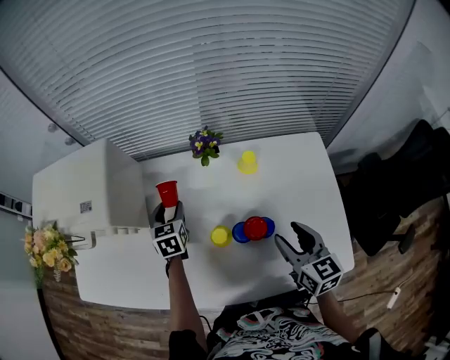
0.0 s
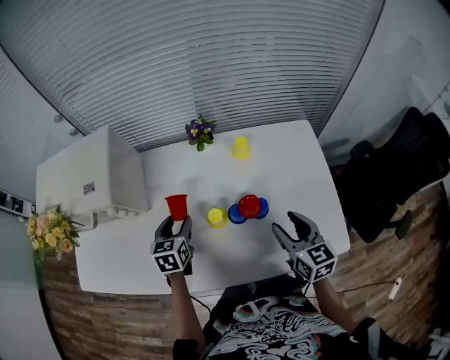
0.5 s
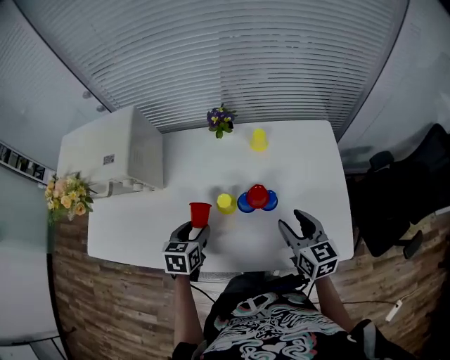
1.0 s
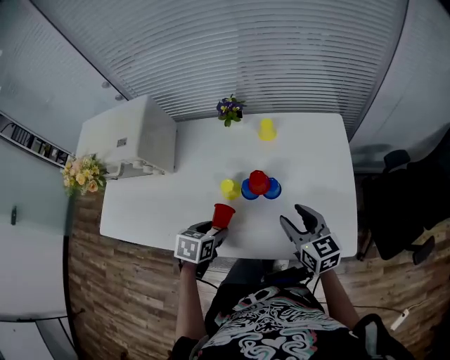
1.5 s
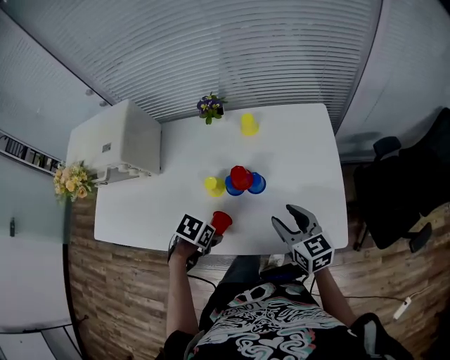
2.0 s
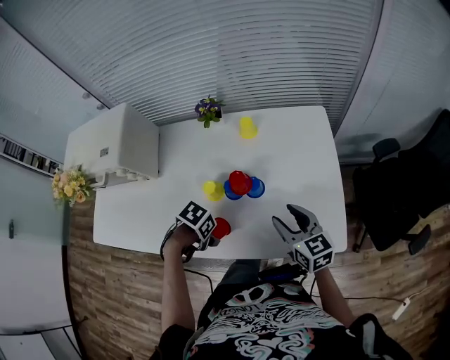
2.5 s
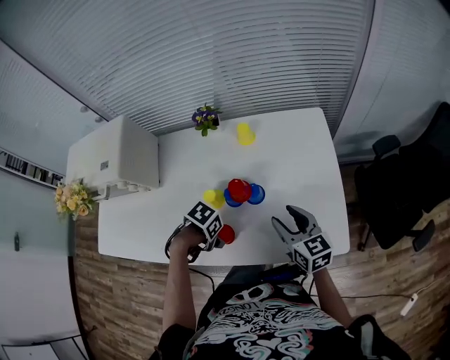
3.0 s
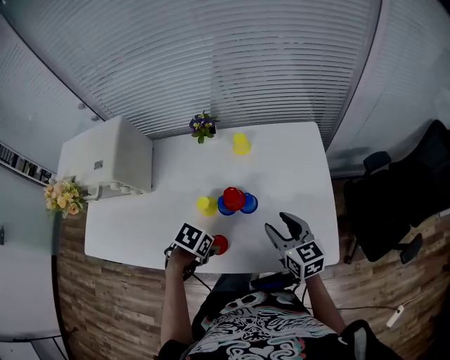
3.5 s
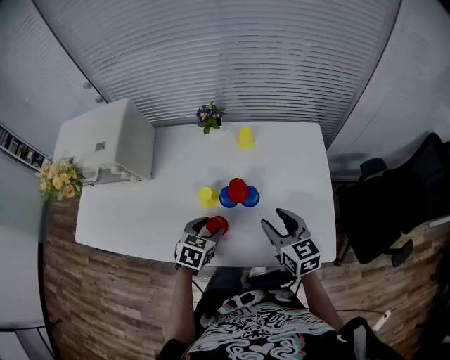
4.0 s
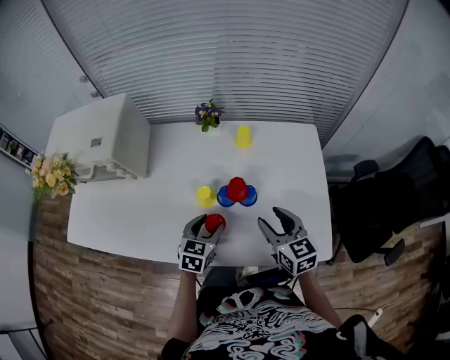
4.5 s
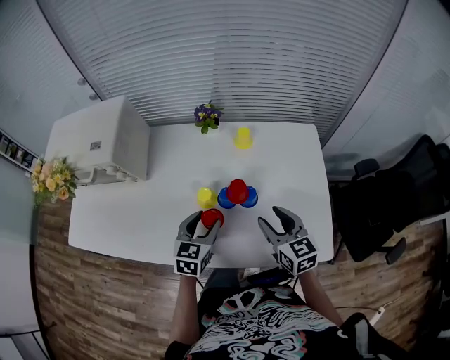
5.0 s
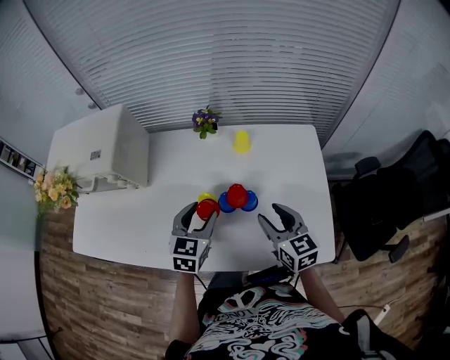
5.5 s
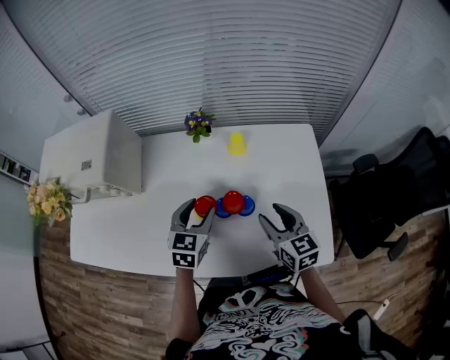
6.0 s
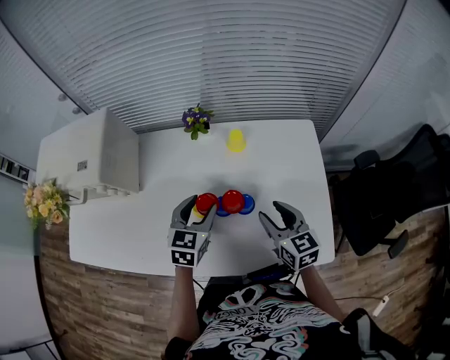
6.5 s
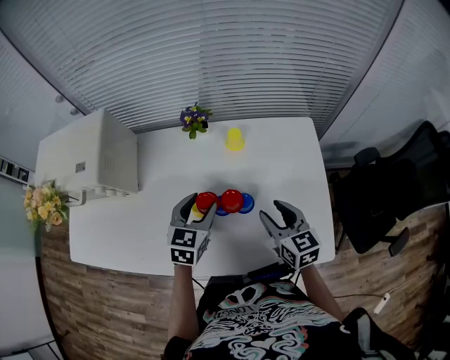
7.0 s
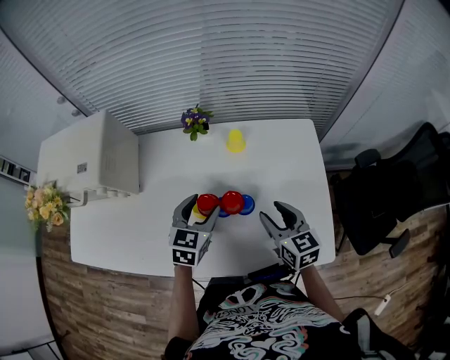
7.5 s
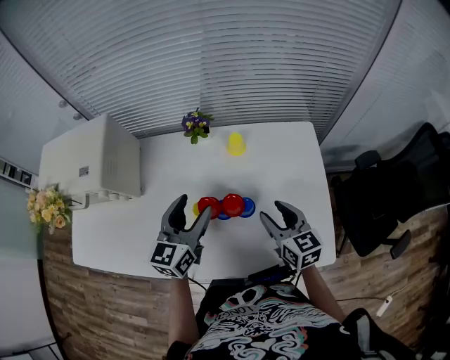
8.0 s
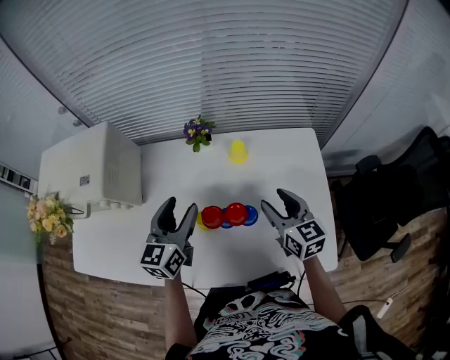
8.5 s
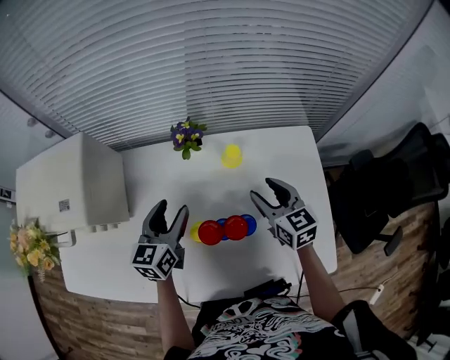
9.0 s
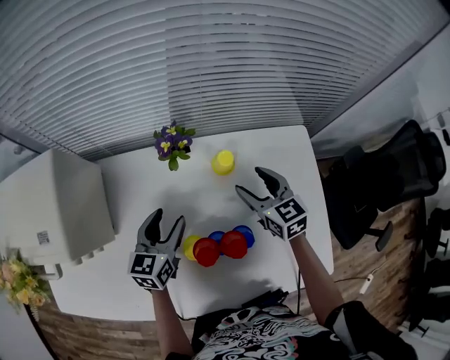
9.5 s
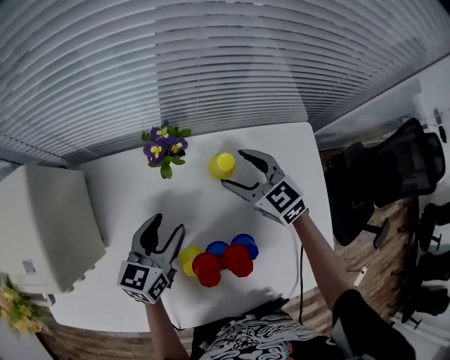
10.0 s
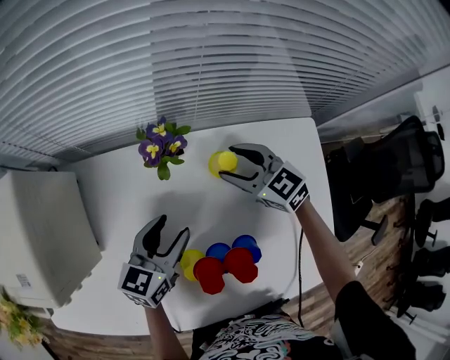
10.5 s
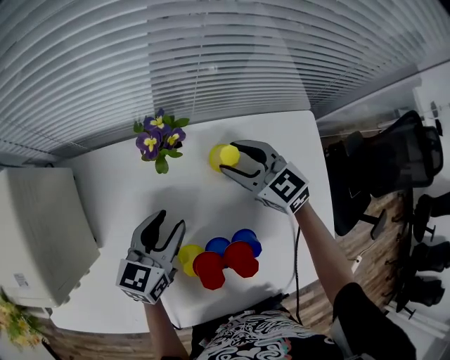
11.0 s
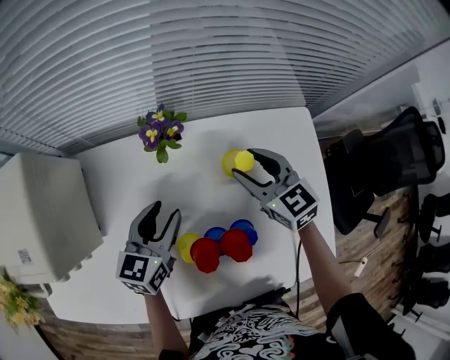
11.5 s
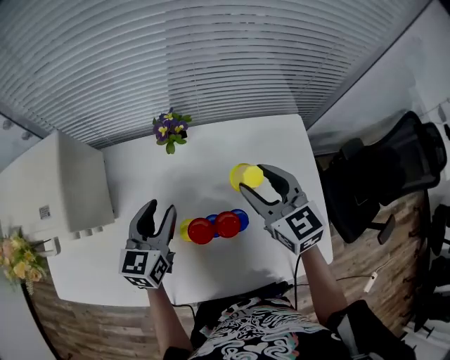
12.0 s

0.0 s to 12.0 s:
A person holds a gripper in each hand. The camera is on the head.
0.0 to 2.0 s: The right gripper changes place by some 10 cm. Meanwhile the left gripper changes place by about 35 cm, and points its fingers some 40 degrees further downward.
2.0 to 4.0 s: The left gripper shifts by roughly 5 cm, and turns by some 40 degrees.
4.0 to 6.0 s: The left gripper travels forward and upward by some 10 cm.
6.0 to 8.0 s: The left gripper heads upward, covering about 5 cm, and swivels approximately 20 degrees.
8.0 to 10.0 s: The left gripper goes approximately 15 cm forward and downward; the right gripper shifts some 25 cm forward, rotates some 30 degrees, and opens its fingers.
10.0 to 12.0 s: The right gripper is displaced backward and upward by about 15 cm, while the left gripper is displaced upward by roughly 5 cm.

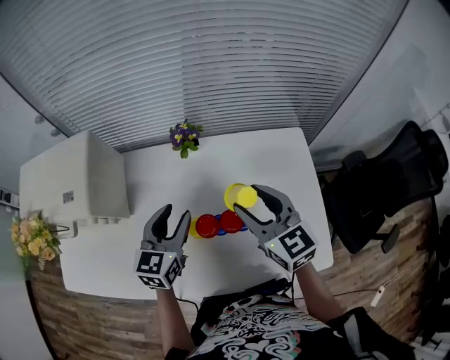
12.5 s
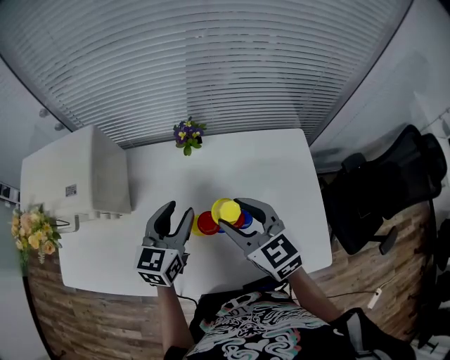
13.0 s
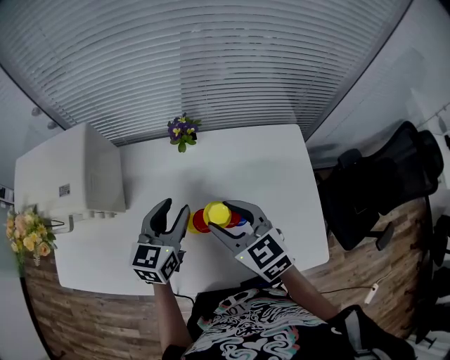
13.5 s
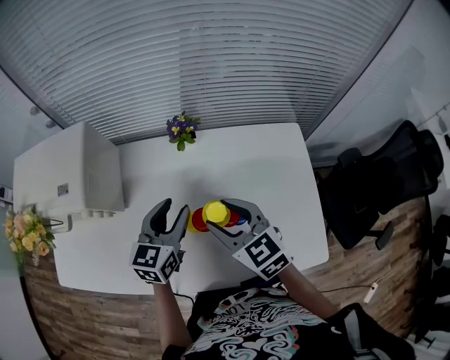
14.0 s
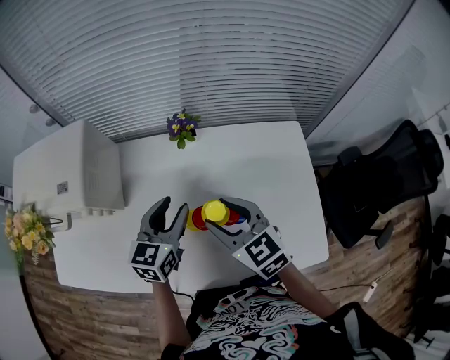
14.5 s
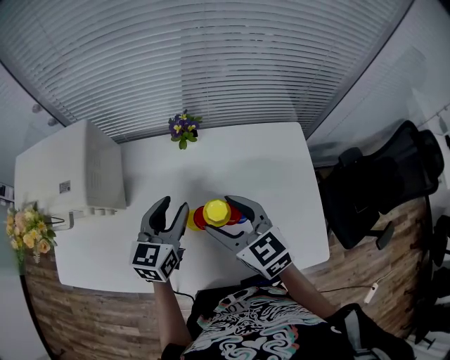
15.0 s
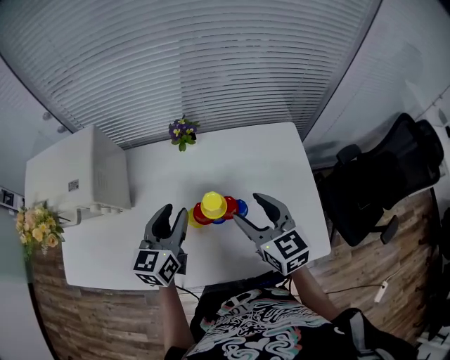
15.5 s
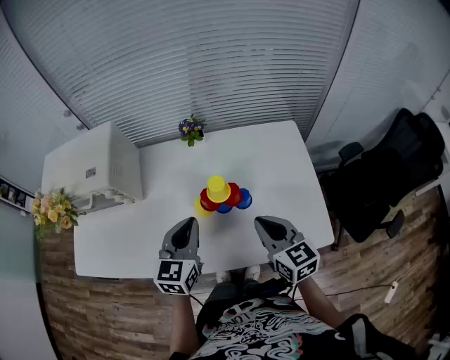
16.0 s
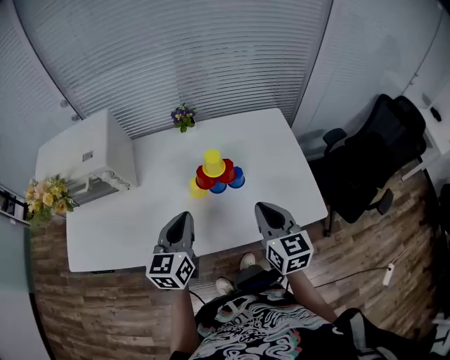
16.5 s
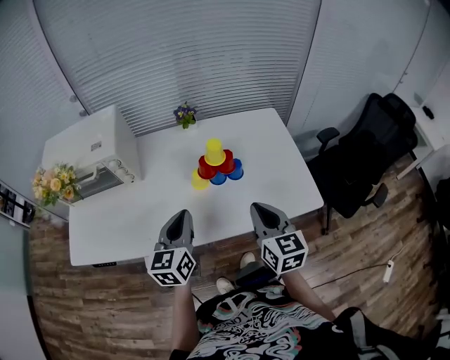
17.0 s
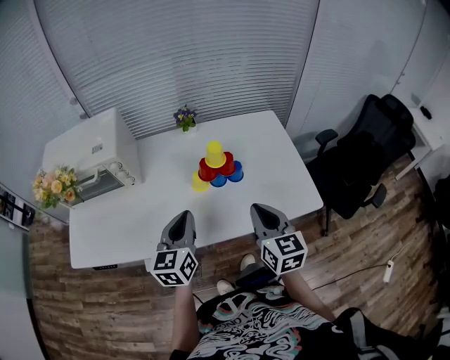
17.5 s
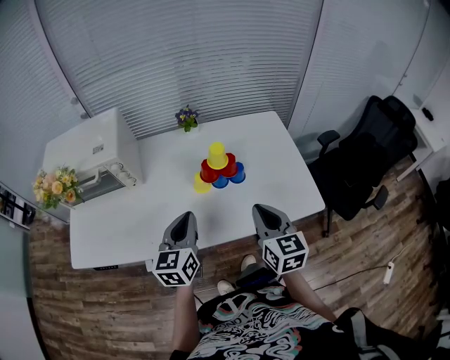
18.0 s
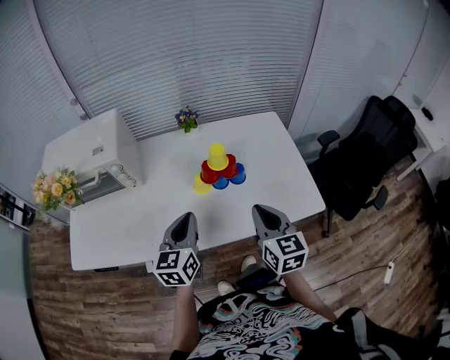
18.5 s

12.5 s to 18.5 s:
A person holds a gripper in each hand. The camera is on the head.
12.5 to 14.5 s: The right gripper is displaced to the left by approximately 10 cm.
14.5 to 16.5 s: The left gripper moves backward, about 15 cm, and closes up. Meanwhile the right gripper goes some 20 cm backward and to the right, changes its angle by approximately 30 degrees, and closes.
16.5 to 18.5 s: The right gripper changes place by some 5 cm.

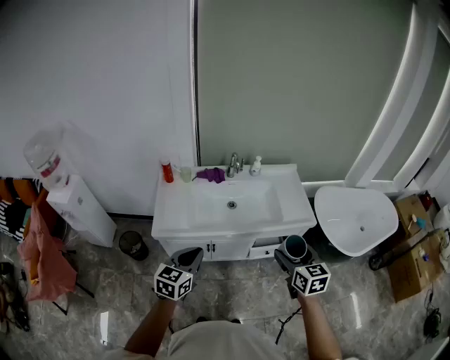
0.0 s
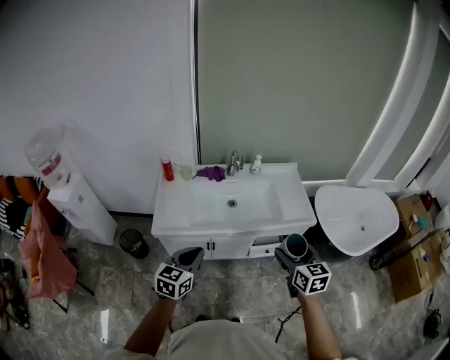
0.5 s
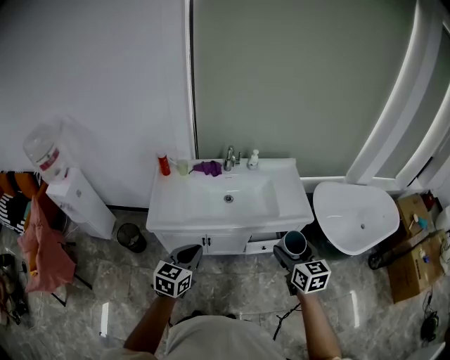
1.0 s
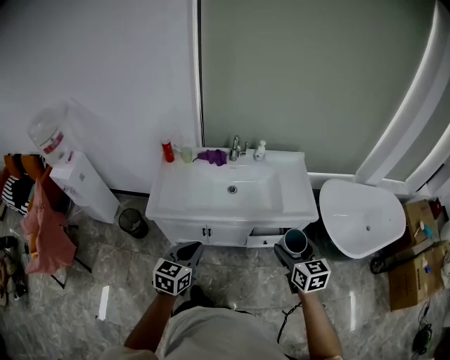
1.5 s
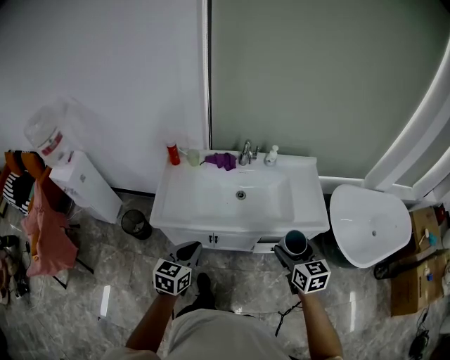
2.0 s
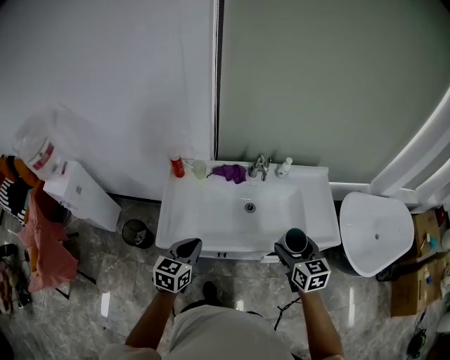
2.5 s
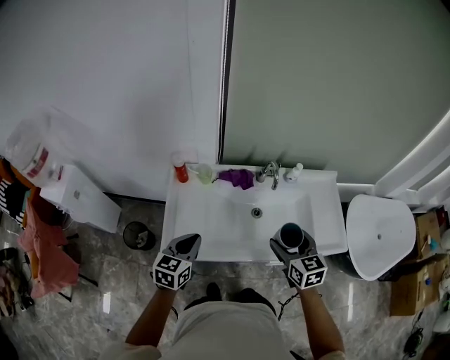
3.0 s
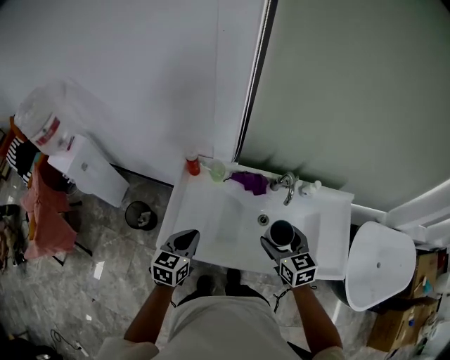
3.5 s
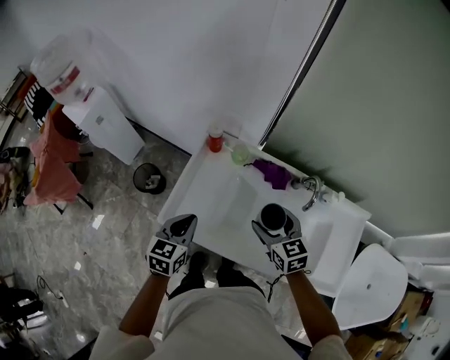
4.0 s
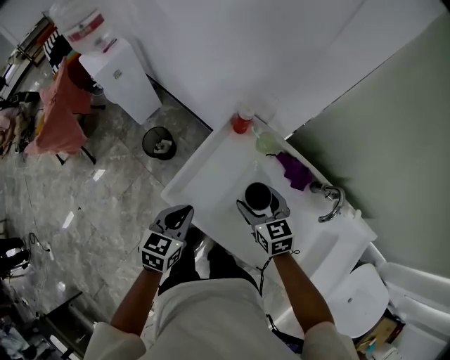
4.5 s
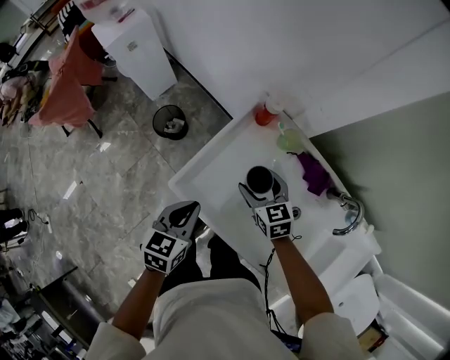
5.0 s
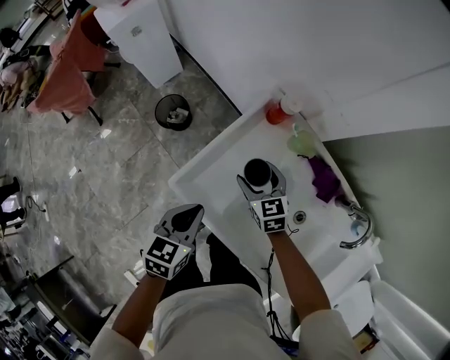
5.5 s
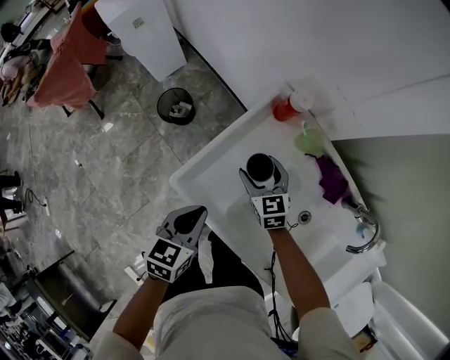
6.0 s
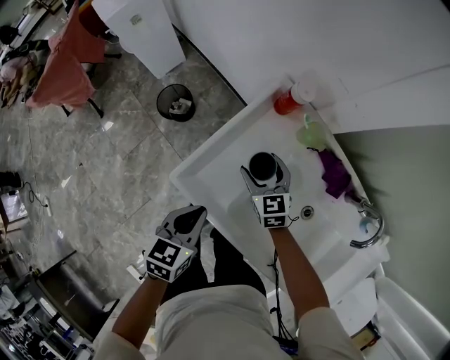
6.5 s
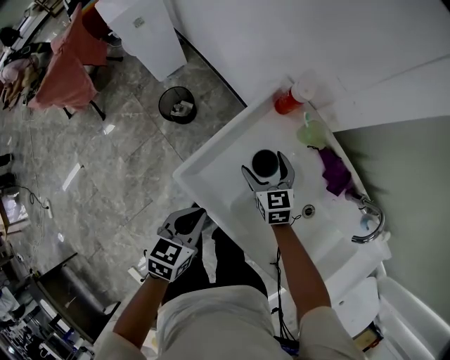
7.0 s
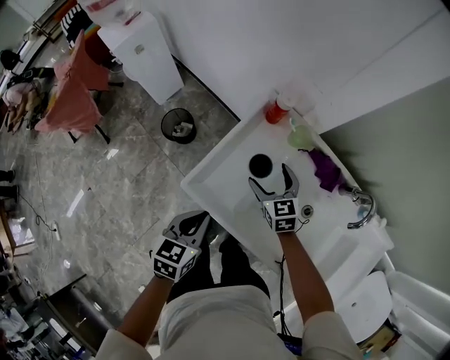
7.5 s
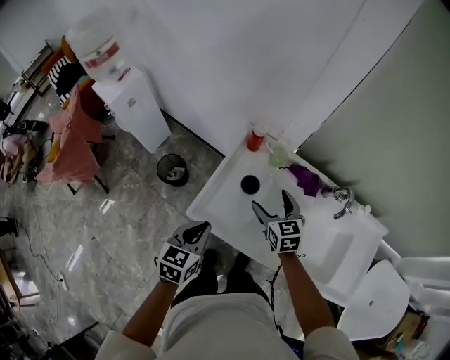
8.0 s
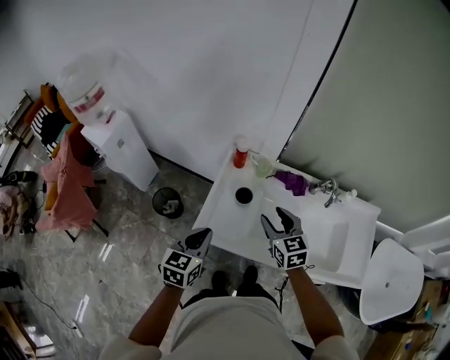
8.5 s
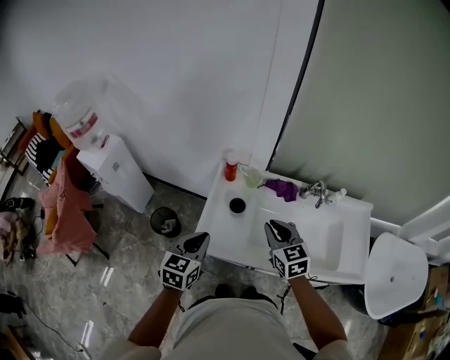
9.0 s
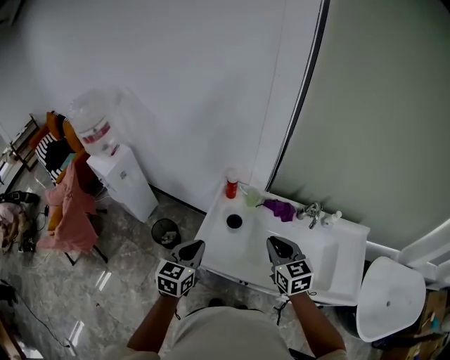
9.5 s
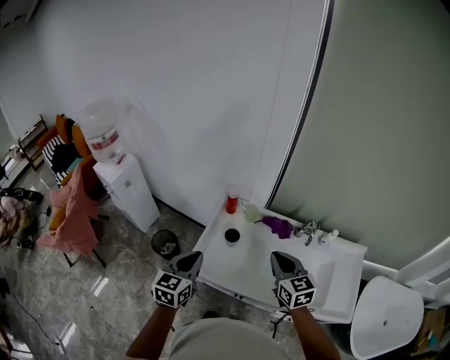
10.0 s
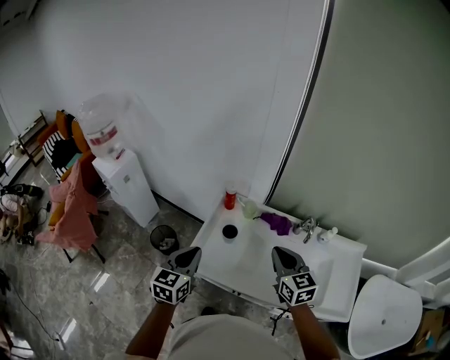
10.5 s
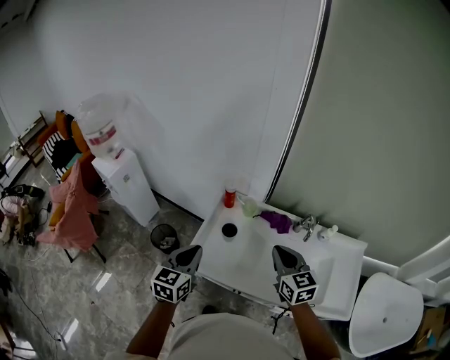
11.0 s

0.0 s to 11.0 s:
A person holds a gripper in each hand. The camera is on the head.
0.0 to 2.0 s: Both grippers move forward and downward, approximately 10 cm.
2.0 to 3.5 s: Both grippers move forward and to the left, roughly 30 cm.
3.5 to 5.5 s: The left gripper travels downward by roughly 10 cm, and swivels about 30 degrees; the right gripper changes place by about 40 cm, and changes its angle by approximately 40 degrees.
5.5 to 7.5 s: The grippers make only small movements.
7.5 to 9.0 s: The left gripper goes roughly 15 cm upward, and rotates approximately 30 degrees, while the right gripper travels upward and backward by some 25 cm, turns by approximately 20 degrees, and closes its fingers.
9.0 to 11.0 s: The right gripper goes roughly 10 cm upward and to the right. The left gripper shifts approximately 5 cm upward.
